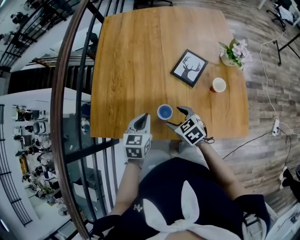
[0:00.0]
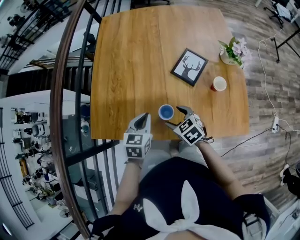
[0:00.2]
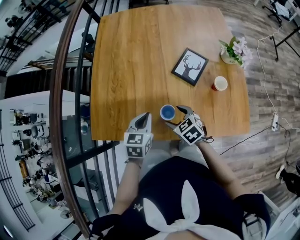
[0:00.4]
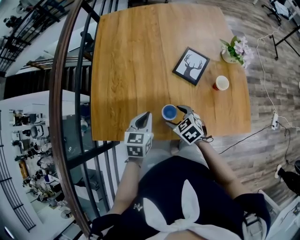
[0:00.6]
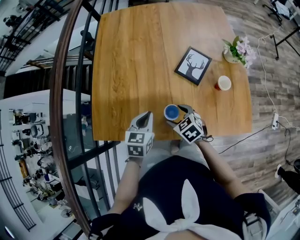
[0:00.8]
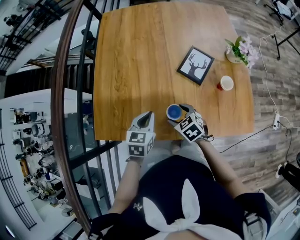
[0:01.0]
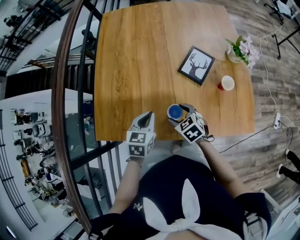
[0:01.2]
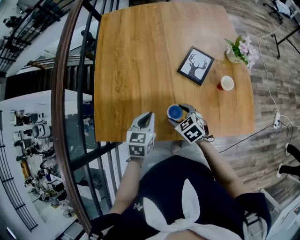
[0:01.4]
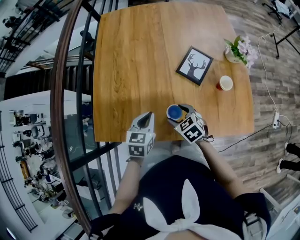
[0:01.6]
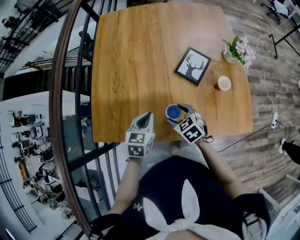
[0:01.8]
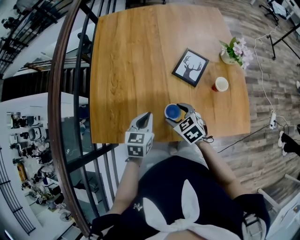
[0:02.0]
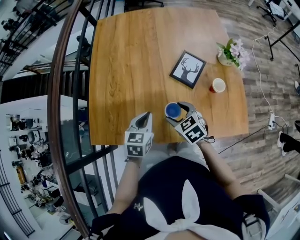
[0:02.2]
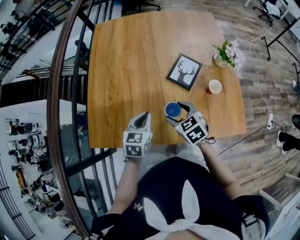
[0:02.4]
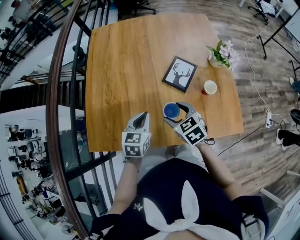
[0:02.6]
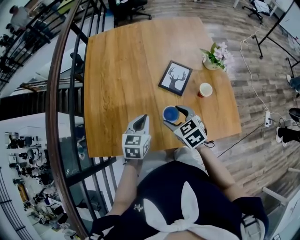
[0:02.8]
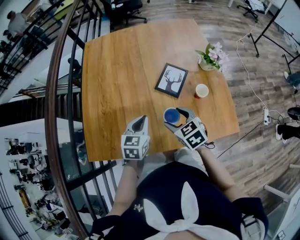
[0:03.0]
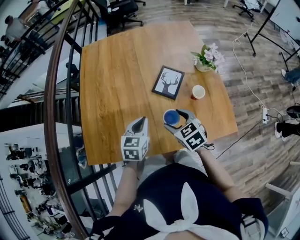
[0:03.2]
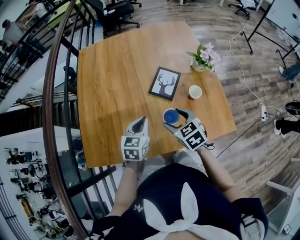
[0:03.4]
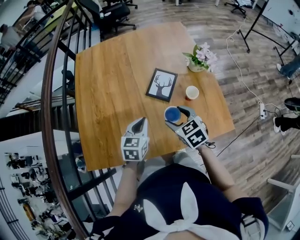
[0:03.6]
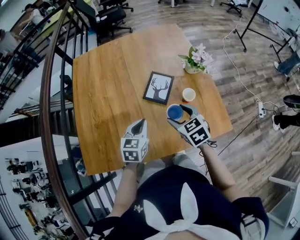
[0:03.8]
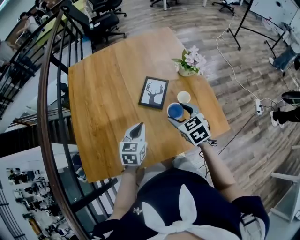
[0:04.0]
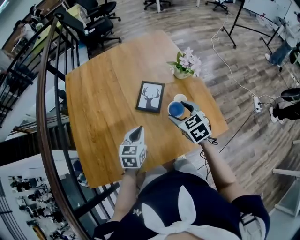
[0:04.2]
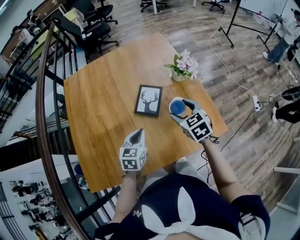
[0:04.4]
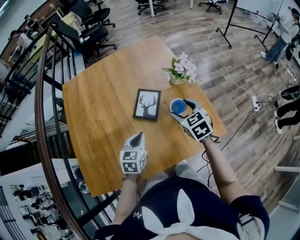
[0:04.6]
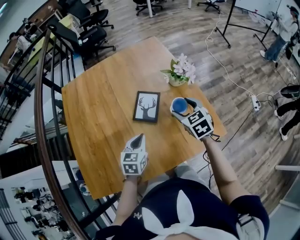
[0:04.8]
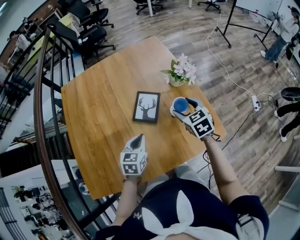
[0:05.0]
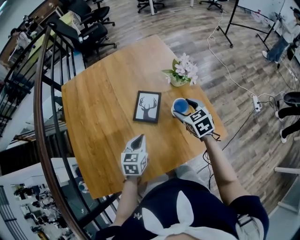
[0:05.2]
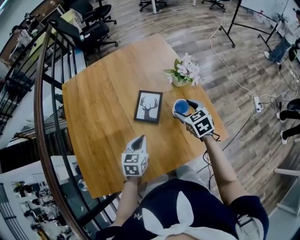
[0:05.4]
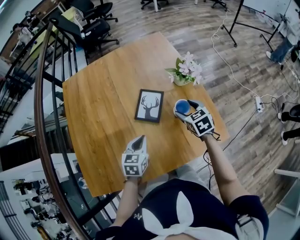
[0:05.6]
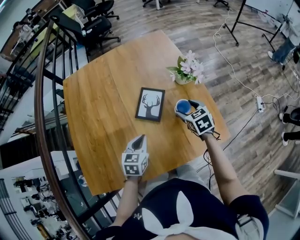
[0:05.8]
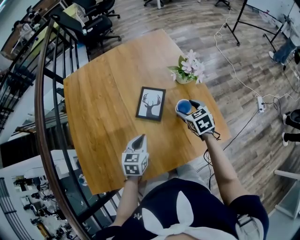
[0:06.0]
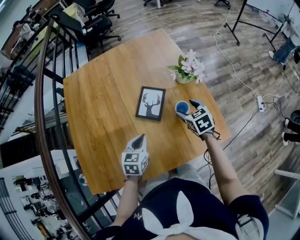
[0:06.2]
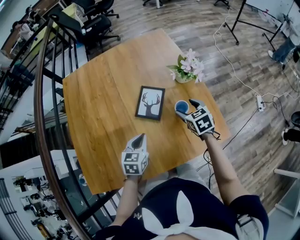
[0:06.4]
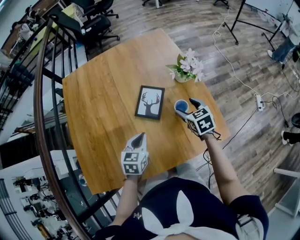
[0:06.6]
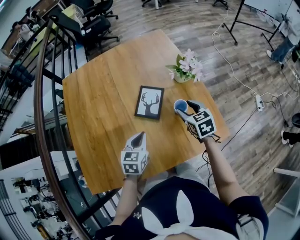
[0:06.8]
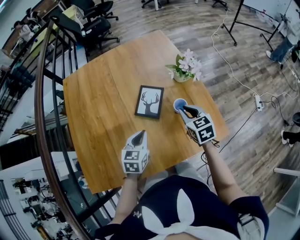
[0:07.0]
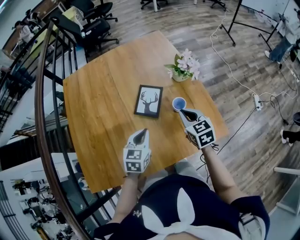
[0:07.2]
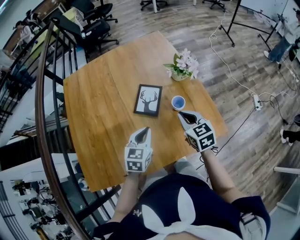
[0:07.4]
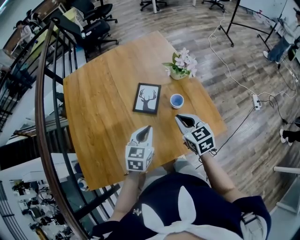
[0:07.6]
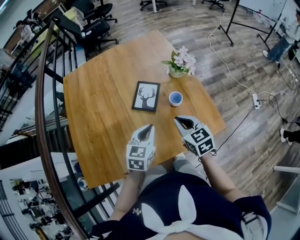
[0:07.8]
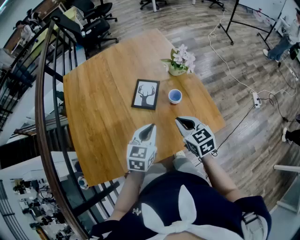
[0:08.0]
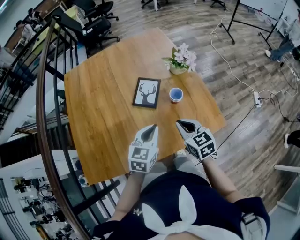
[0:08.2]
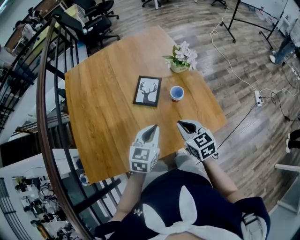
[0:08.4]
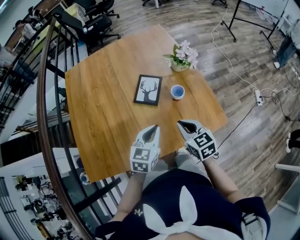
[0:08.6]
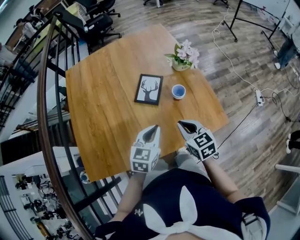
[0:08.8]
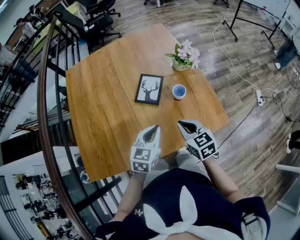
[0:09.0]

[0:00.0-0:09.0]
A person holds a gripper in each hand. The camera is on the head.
0:00.0 to 0:01.6: The grippers stay close to where they were, moving slightly.
0:01.6 to 0:03.0: The left gripper travels to the right by approximately 5 cm. The right gripper moves upward and to the right, roughly 15 cm.
0:03.0 to 0:04.4: The left gripper heads to the right, covering roughly 10 cm. The right gripper heads to the right and forward, covering roughly 20 cm.
0:04.4 to 0:06.0: The right gripper heads downward and forward, covering about 10 cm.
0:06.0 to 0:07.6: The left gripper is displaced upward by some 5 cm. Meanwhile the right gripper goes roughly 15 cm backward and upward, and closes up.
0:07.6 to 0:09.0: The left gripper changes place by some 5 cm. The right gripper is displaced backward by approximately 5 cm.

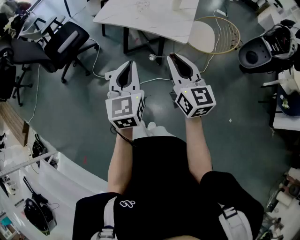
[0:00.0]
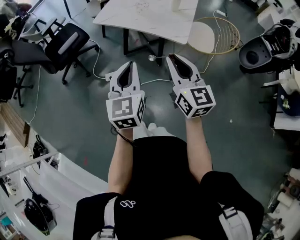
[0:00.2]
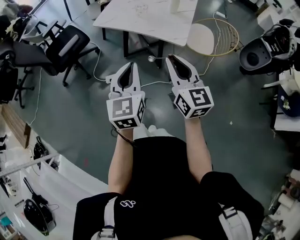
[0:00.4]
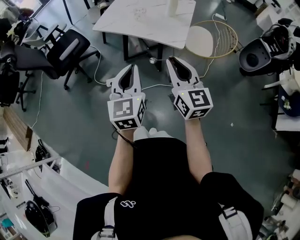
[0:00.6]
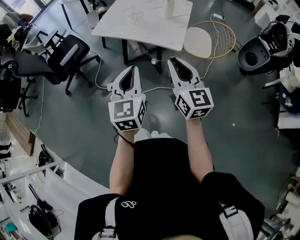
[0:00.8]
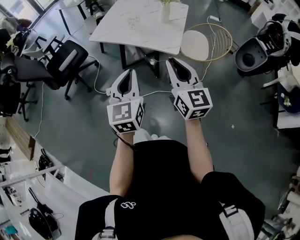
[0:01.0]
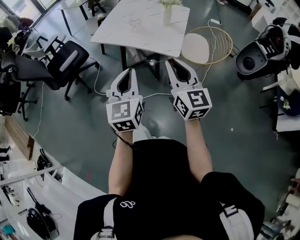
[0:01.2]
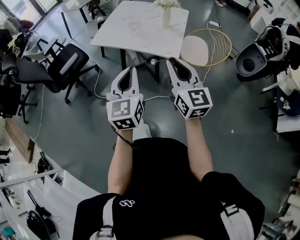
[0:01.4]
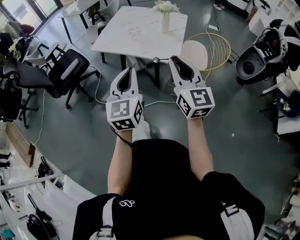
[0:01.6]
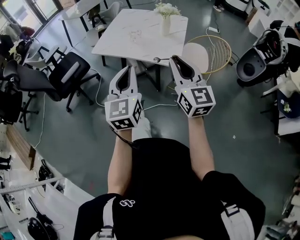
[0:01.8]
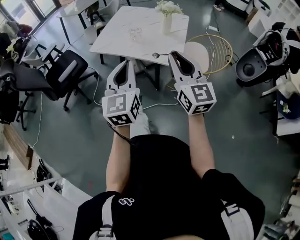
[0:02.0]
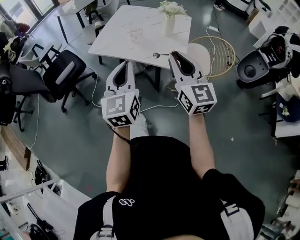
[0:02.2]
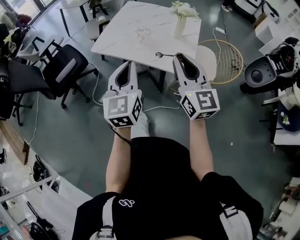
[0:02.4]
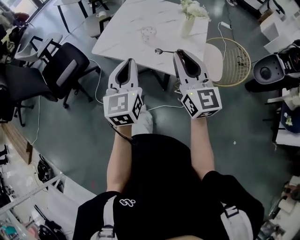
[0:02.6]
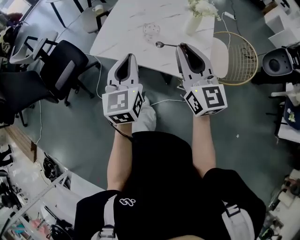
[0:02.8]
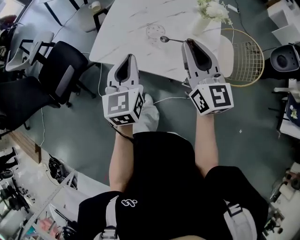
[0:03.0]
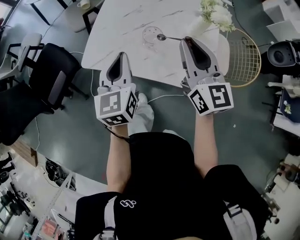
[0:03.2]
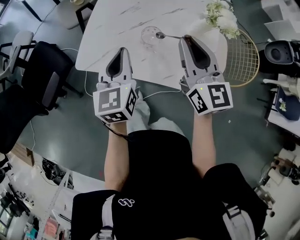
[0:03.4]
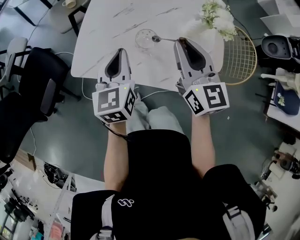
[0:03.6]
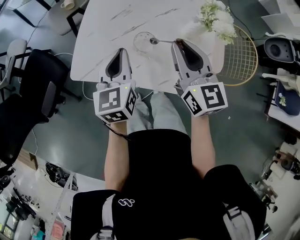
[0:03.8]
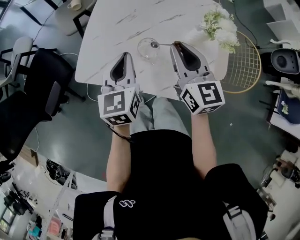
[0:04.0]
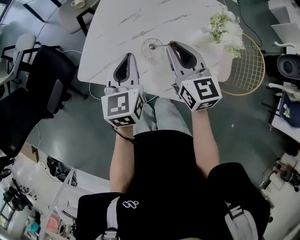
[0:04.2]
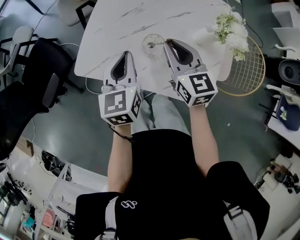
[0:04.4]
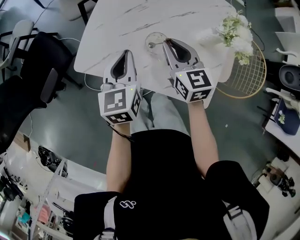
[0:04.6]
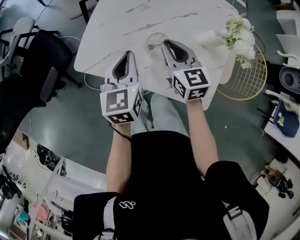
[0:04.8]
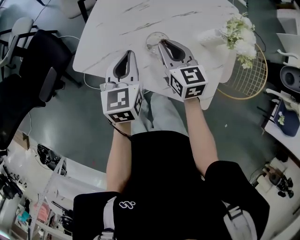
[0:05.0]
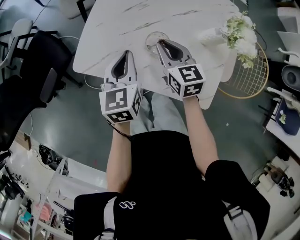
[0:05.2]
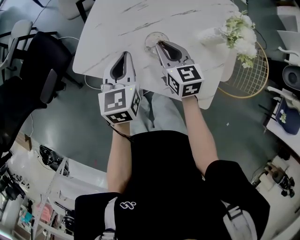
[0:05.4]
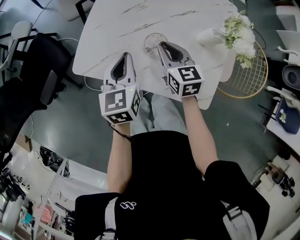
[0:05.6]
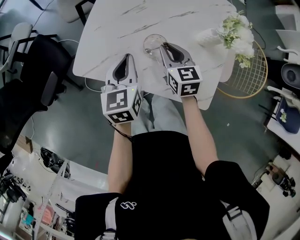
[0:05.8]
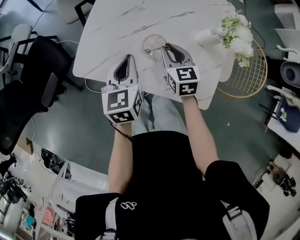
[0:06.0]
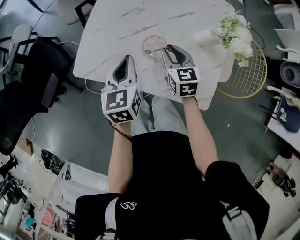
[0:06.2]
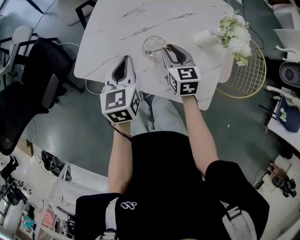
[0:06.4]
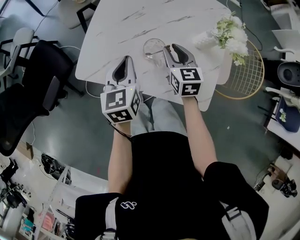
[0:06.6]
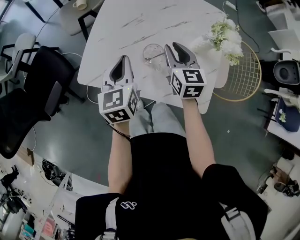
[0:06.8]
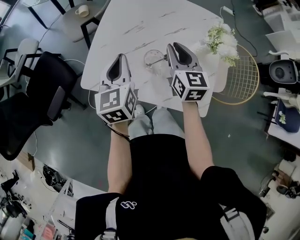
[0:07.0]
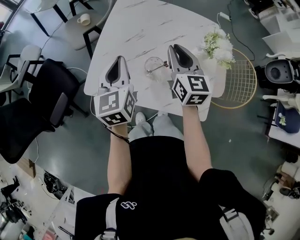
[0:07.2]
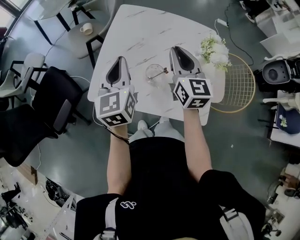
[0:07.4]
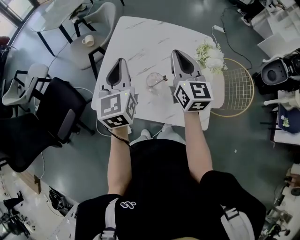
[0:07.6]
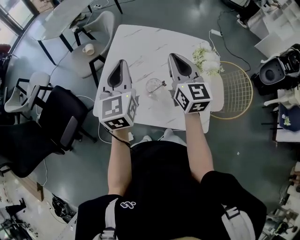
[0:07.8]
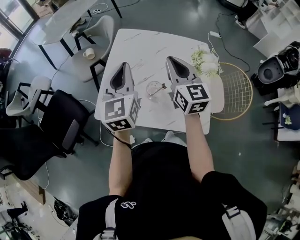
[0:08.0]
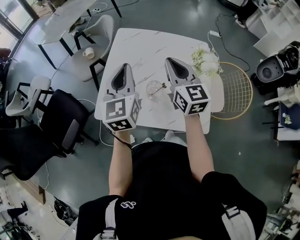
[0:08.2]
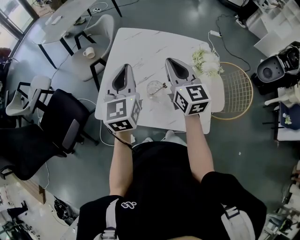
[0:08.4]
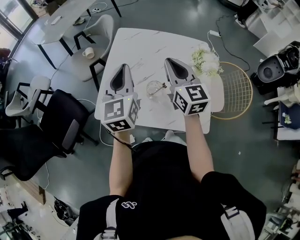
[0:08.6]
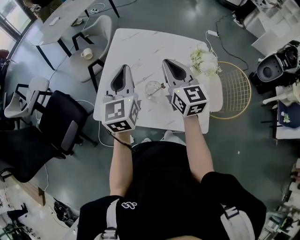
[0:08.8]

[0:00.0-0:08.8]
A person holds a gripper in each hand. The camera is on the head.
0:00.0 to 0:01.4: The two grippers go some 5 cm to the right.
0:01.4 to 0:03.0: The grippers both shift forward by approximately 40 cm.
0:03.0 to 0:04.4: Both grippers move forward and downward, some 20 cm. The right gripper changes its angle by some 20 degrees.
0:04.4 to 0:05.8: The right gripper moves downward, about 10 cm.
0:05.8 to 0:07.4: Both grippers travel together upward, about 15 cm. The right gripper swivels approximately 30 degrees.
0:07.4 to 0:08.8: The left gripper is displaced upward by about 5 cm.

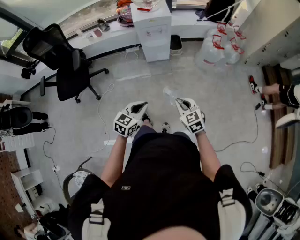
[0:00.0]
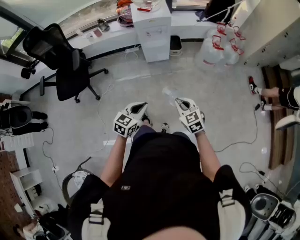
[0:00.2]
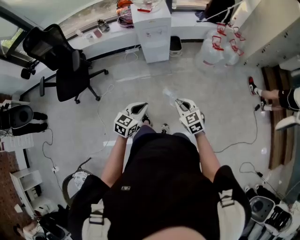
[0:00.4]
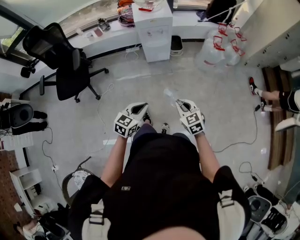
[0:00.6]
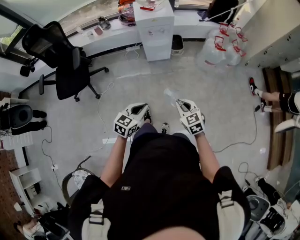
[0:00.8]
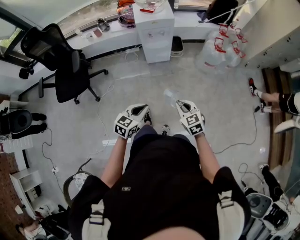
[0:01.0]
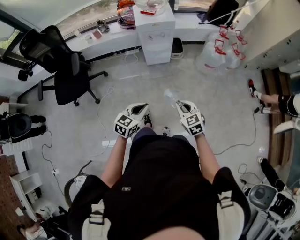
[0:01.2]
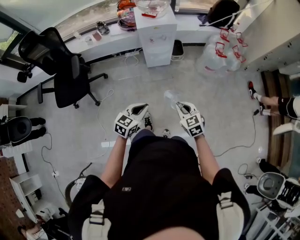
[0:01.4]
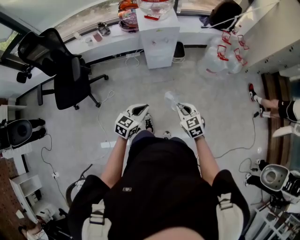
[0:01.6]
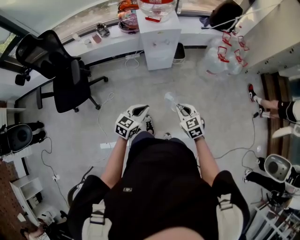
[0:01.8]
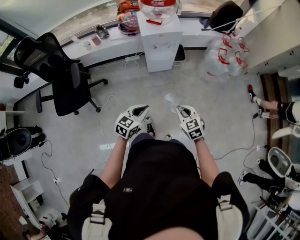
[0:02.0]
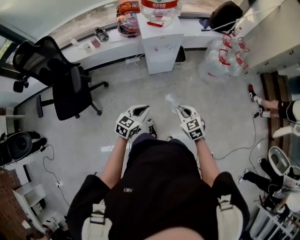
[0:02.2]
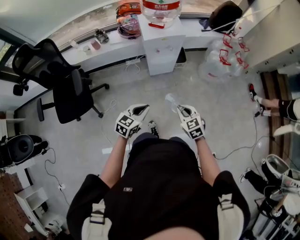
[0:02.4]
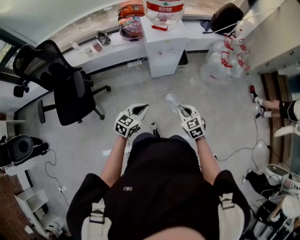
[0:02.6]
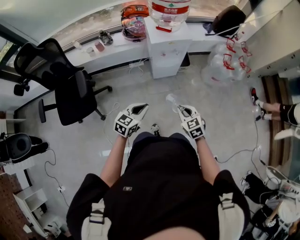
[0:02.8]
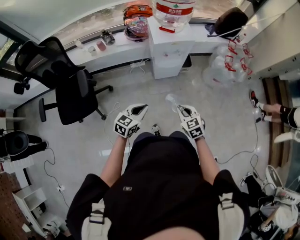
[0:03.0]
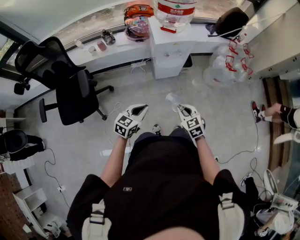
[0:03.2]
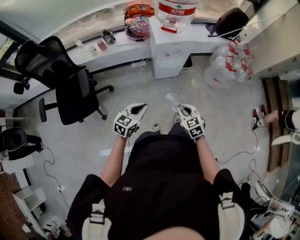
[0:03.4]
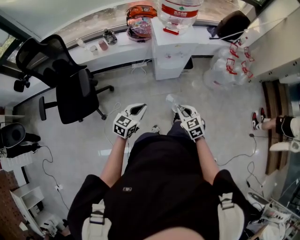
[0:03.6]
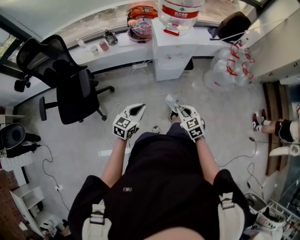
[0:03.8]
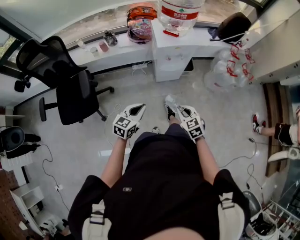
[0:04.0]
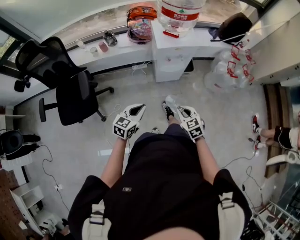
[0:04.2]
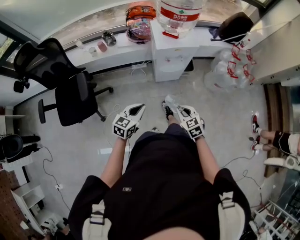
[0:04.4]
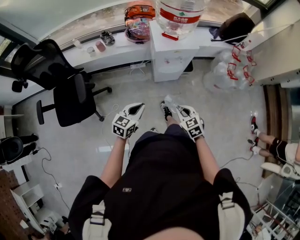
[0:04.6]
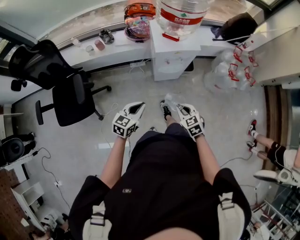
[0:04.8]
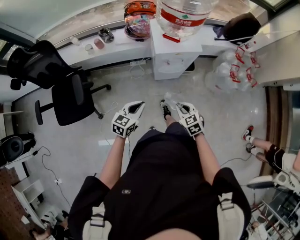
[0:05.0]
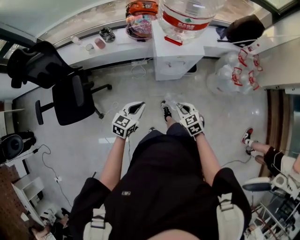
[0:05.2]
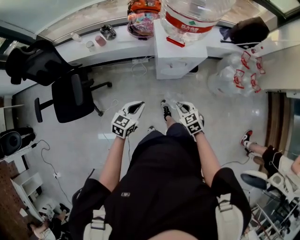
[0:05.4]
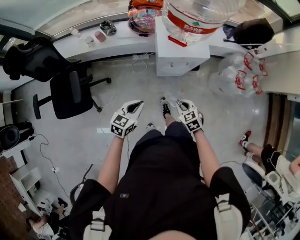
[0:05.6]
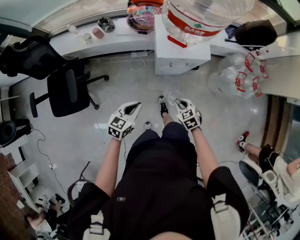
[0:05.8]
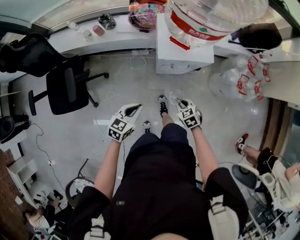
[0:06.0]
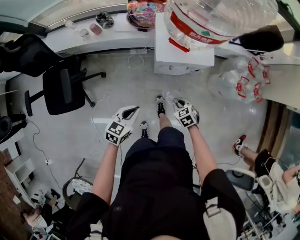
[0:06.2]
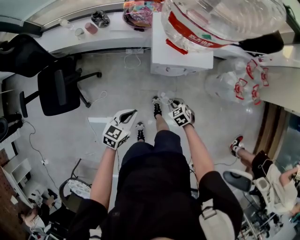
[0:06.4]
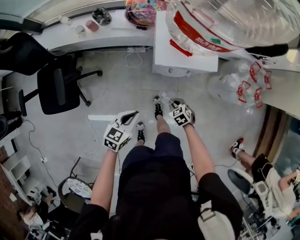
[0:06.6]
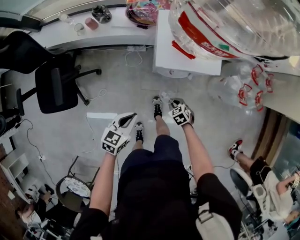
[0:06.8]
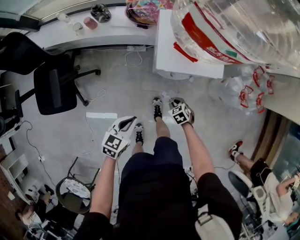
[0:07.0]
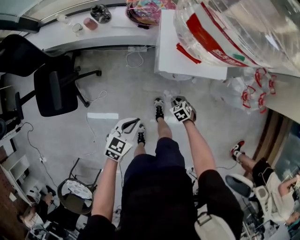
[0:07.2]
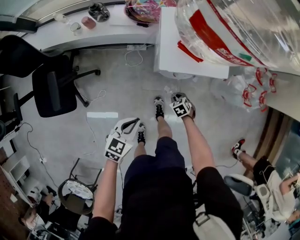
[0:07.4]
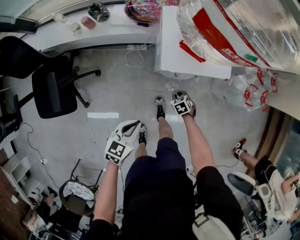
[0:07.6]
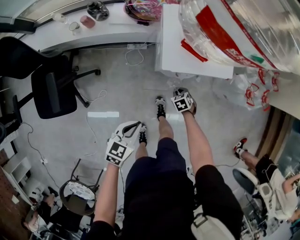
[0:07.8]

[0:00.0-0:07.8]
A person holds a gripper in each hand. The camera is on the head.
0:00.0 to 0:01.6: Both grippers travel together forward and to the left, about 10 cm.
0:01.6 to 0:03.2: The grippers both shift to the left and forward by approximately 20 cm.
0:03.2 to 0:04.6: The two grippers go approximately 10 cm forward.
0:04.6 to 0:06.2: The left gripper moves forward and downward, about 15 cm, while the right gripper heads forward and downward, covering about 25 cm.
0:06.2 to 0:07.8: The right gripper goes about 20 cm downward and forward. The left gripper travels downward by about 5 cm.
